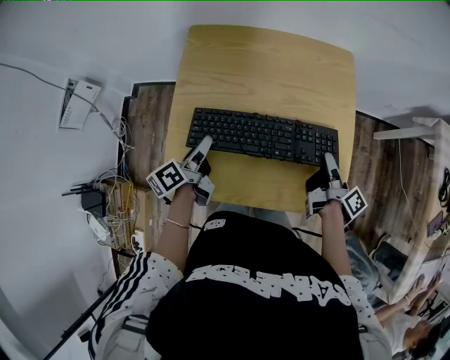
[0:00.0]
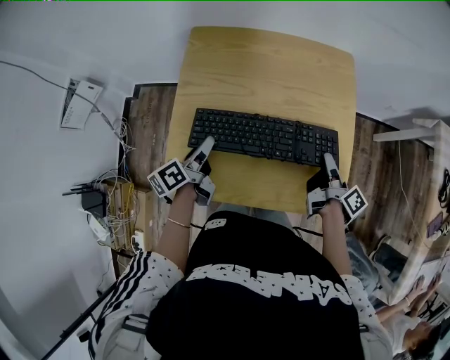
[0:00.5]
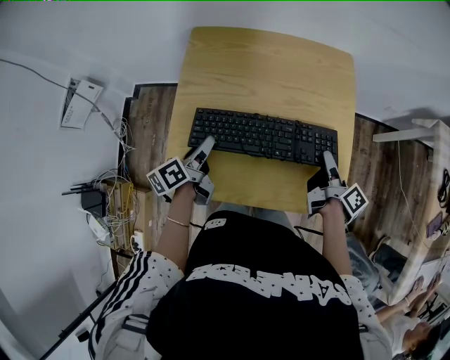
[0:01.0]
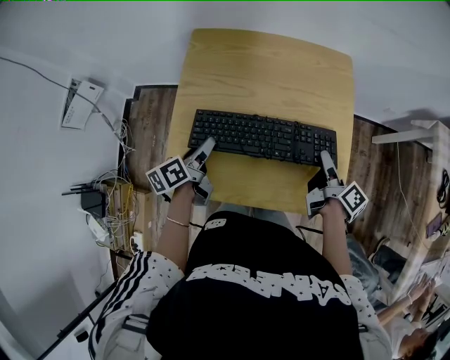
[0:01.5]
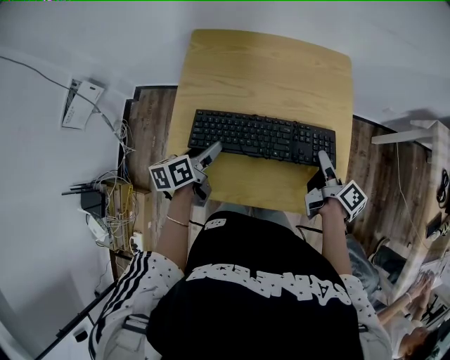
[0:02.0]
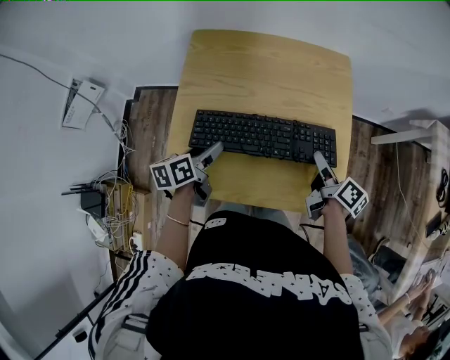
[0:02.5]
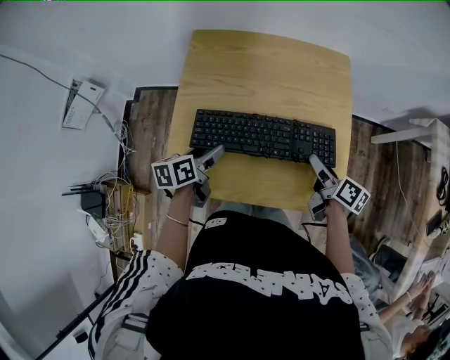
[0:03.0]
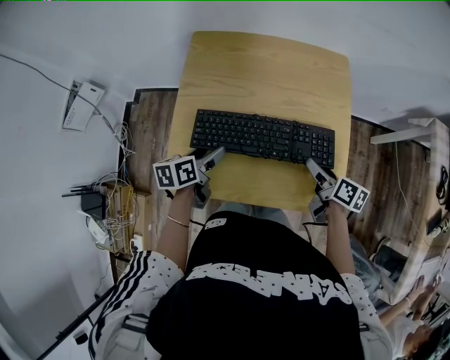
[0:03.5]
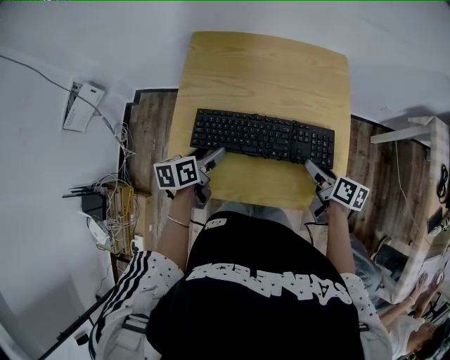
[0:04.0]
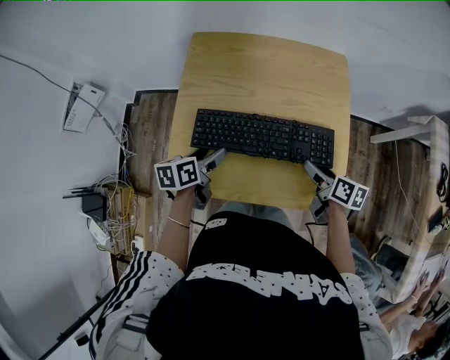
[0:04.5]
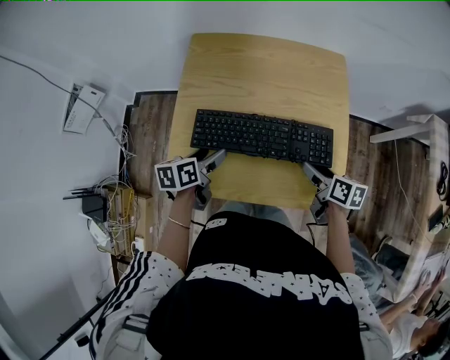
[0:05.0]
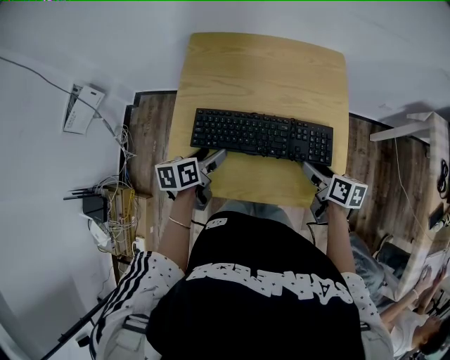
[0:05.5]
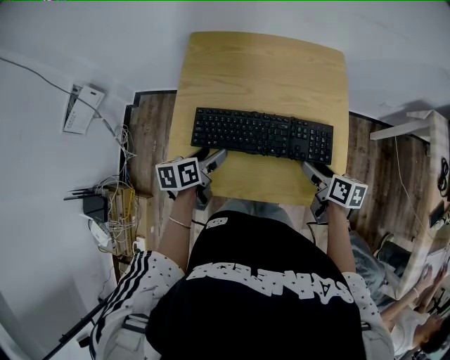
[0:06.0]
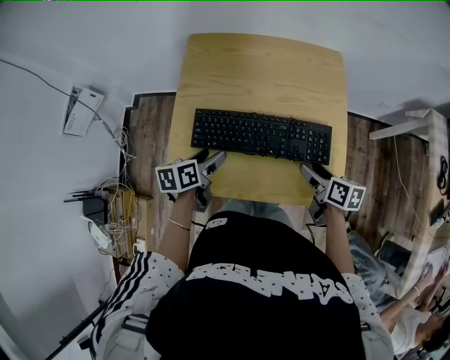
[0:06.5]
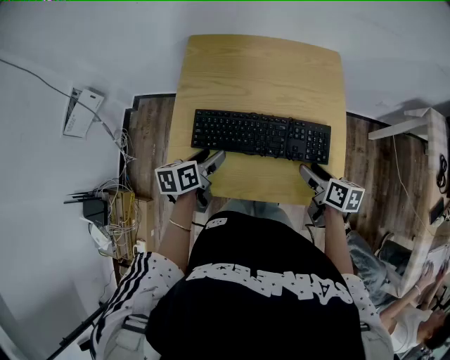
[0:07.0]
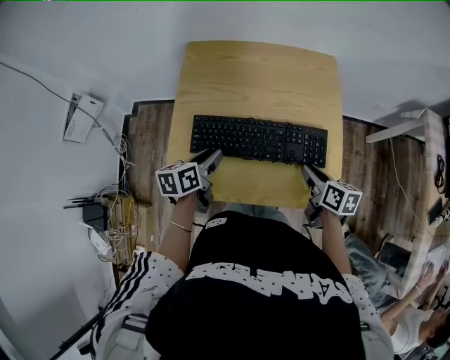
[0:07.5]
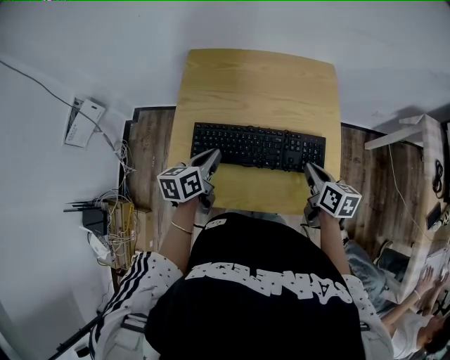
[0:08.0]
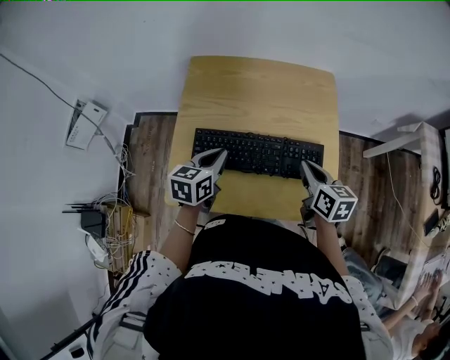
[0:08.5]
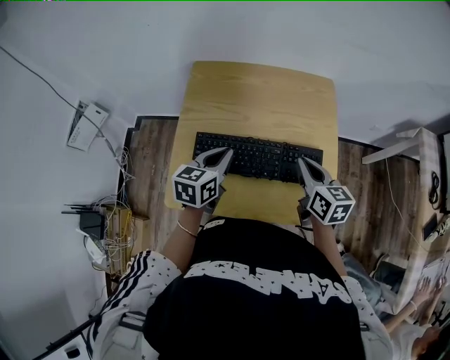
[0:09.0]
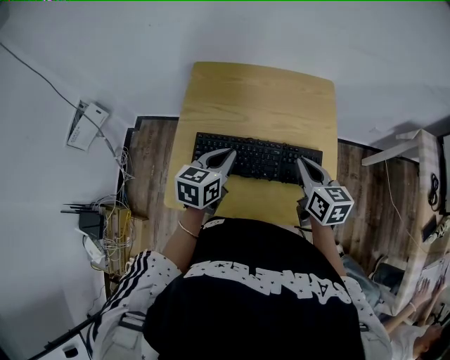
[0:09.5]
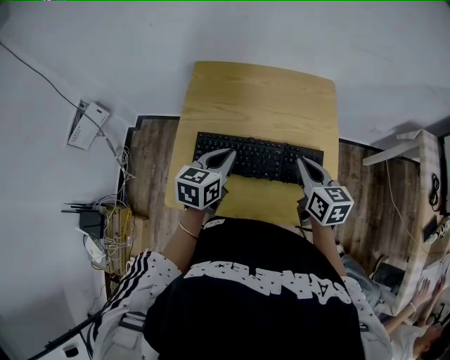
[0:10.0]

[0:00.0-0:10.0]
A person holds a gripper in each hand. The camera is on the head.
0:00.0 to 0:02.0: The left gripper turns by roughly 20 degrees, and opens up.
0:06.0 to 0:08.0: The left gripper ends up some 5 cm from where it was, and closes.
0:08.0 to 0:10.0: The left gripper shifts by approximately 5 cm.

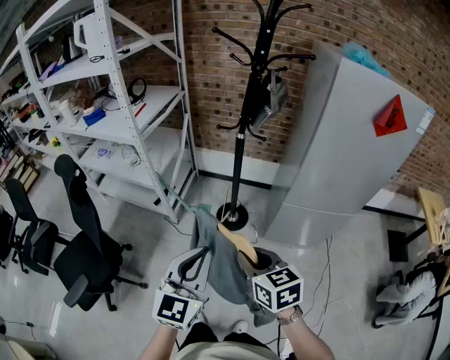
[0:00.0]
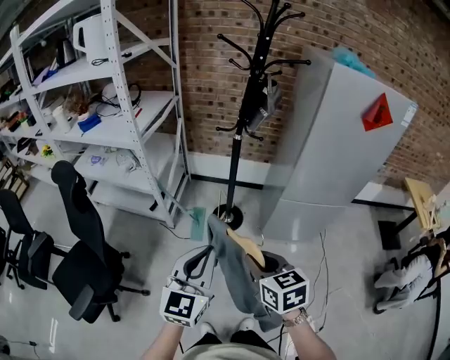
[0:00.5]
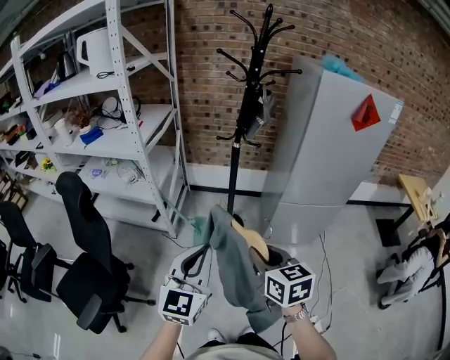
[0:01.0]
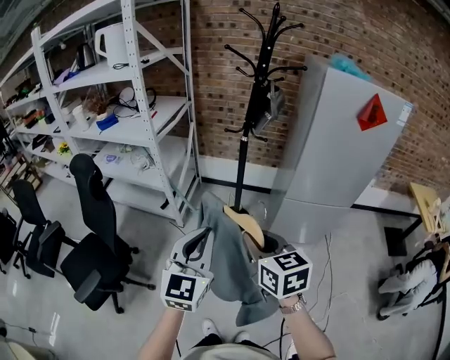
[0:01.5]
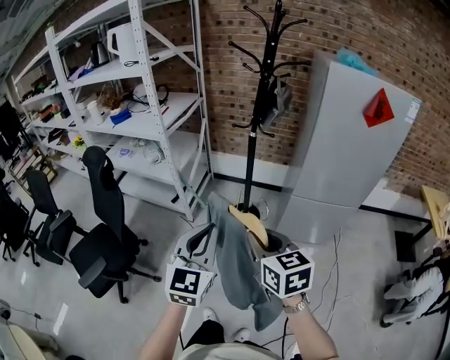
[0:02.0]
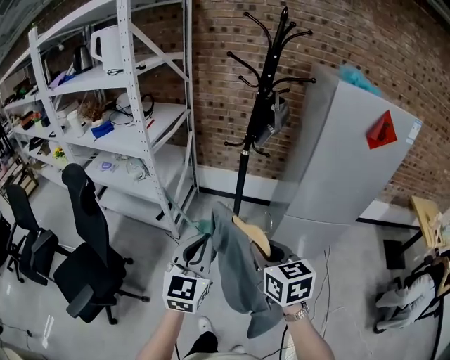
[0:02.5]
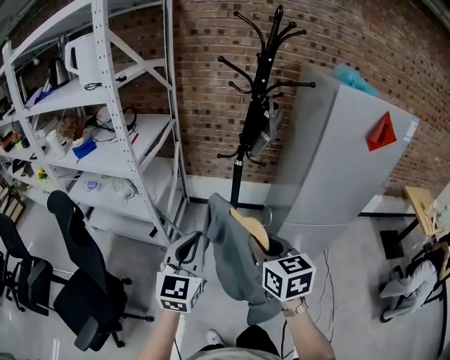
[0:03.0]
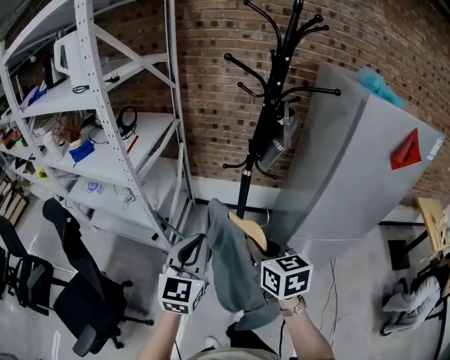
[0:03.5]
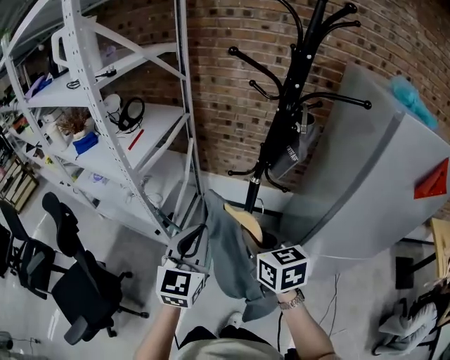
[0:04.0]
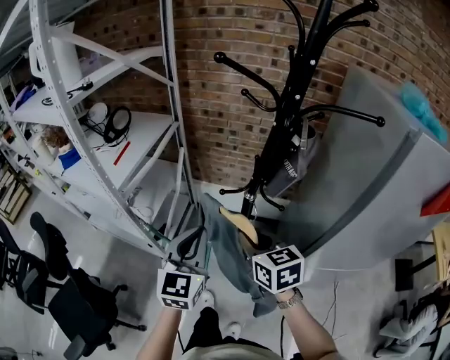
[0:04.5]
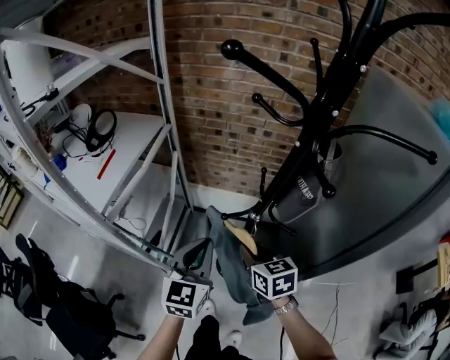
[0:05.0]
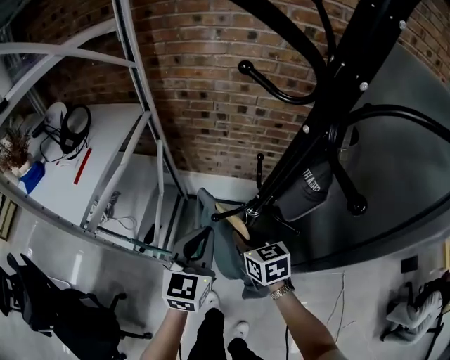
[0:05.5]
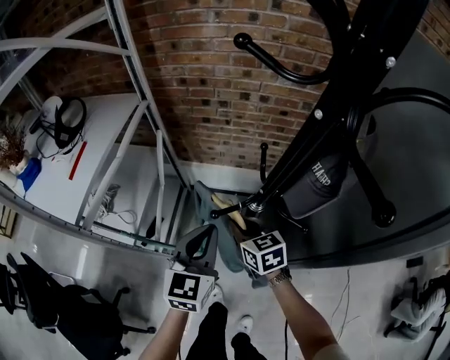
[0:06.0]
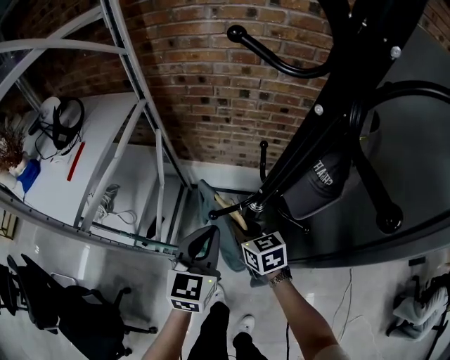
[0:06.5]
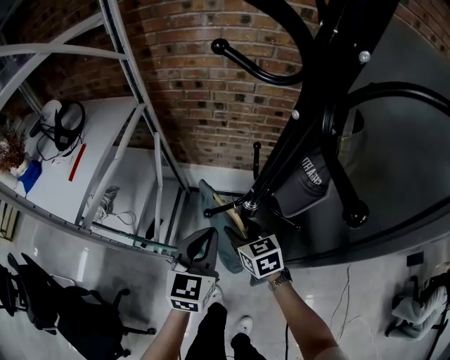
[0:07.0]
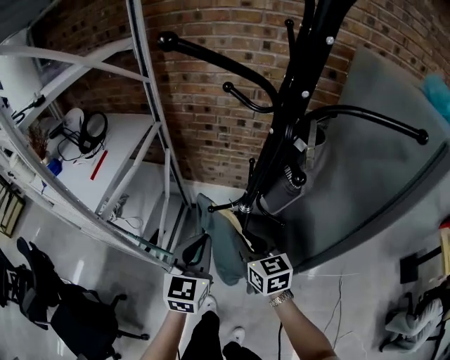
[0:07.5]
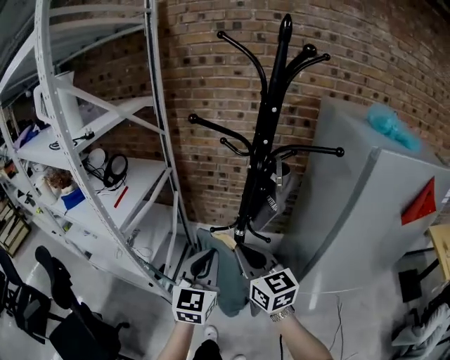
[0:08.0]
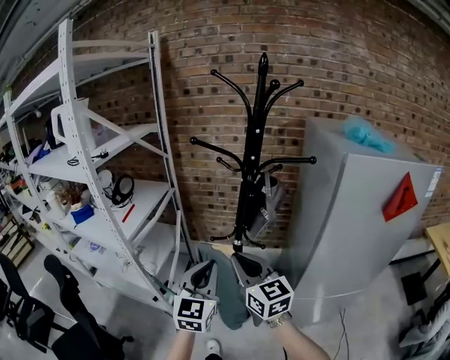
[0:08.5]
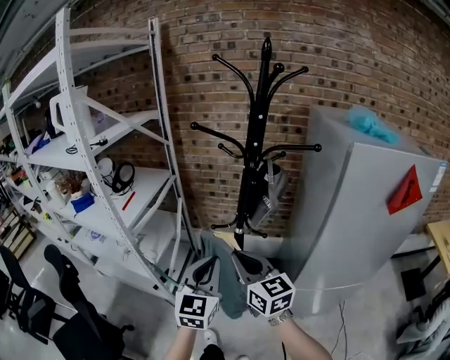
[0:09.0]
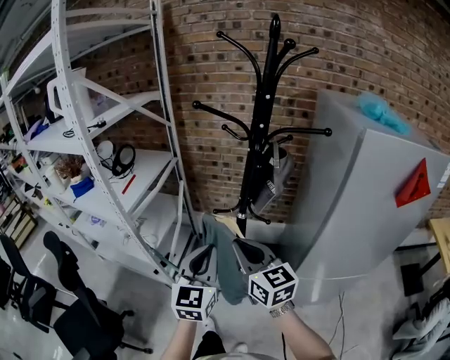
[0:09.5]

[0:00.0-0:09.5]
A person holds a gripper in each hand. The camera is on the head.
0:00.0 to 0:02.0: The right gripper goes some 10 cm backward and upward. The left gripper moves backward, roughly 10 cm, and goes to the left and returns, approximately 10 cm each way.
0:02.0 to 0:04.0: Both grippers move forward, some 40 cm.
0:04.0 to 0:05.5: Both grippers travel together forward and downward, some 30 cm.
0:05.5 to 0:07.5: The left gripper travels backward by about 5 cm; the right gripper travels upward and backward by roughly 10 cm, and opens, then closes once more.
0:07.5 to 0:09.5: The right gripper travels upward and backward by about 25 cm; the left gripper is displaced backward and upward by some 20 cm.

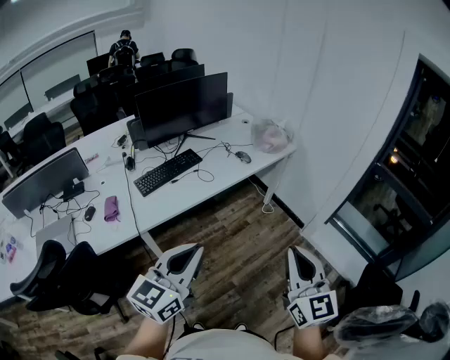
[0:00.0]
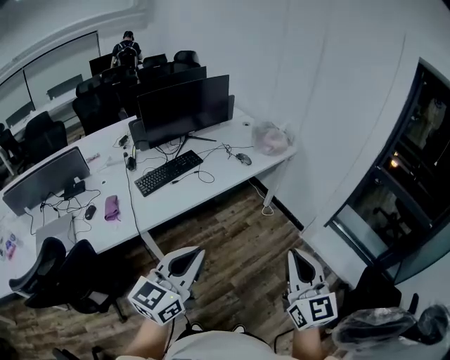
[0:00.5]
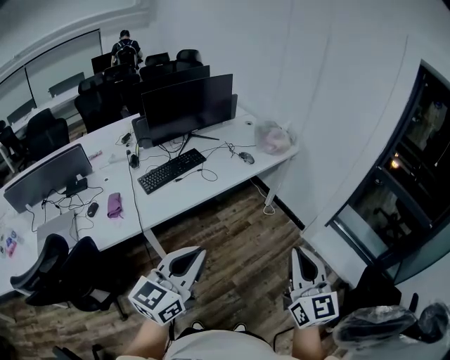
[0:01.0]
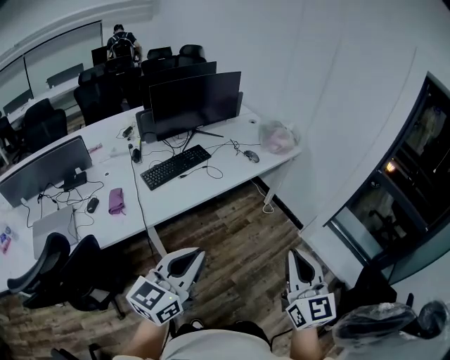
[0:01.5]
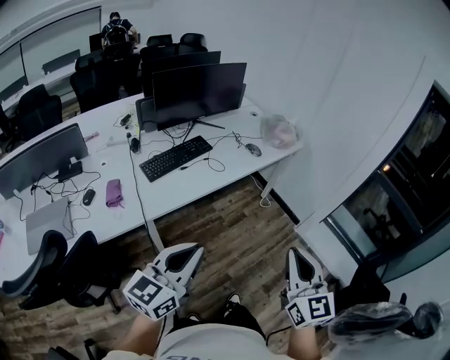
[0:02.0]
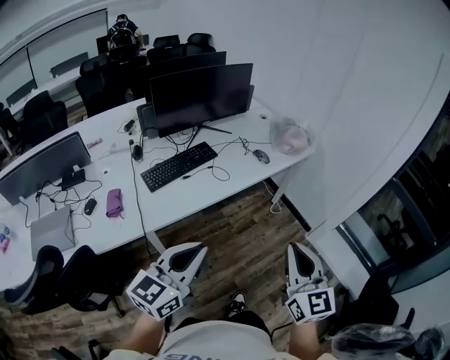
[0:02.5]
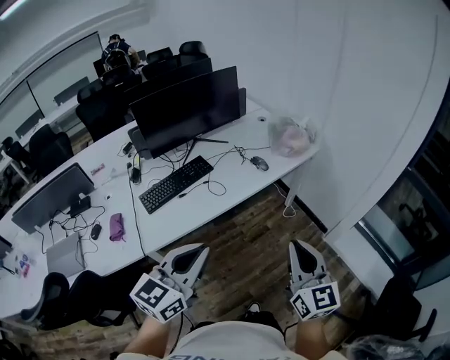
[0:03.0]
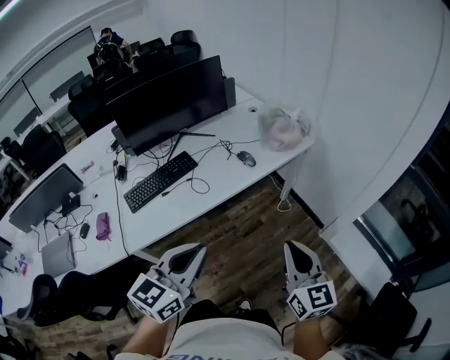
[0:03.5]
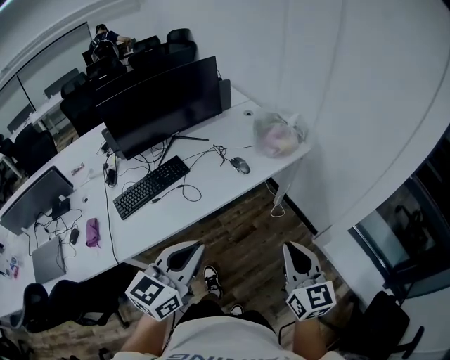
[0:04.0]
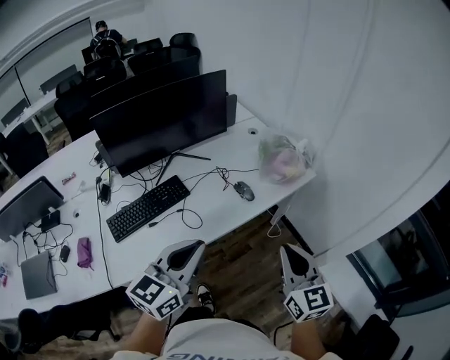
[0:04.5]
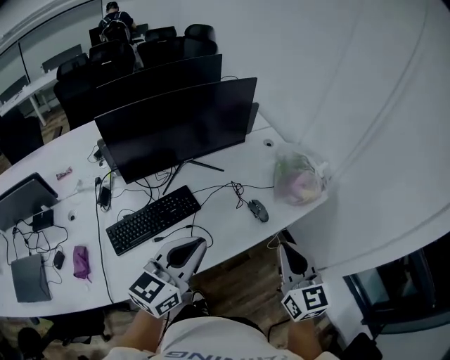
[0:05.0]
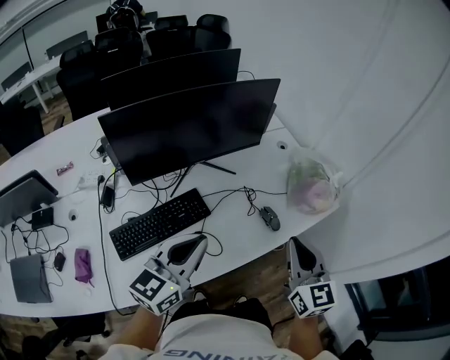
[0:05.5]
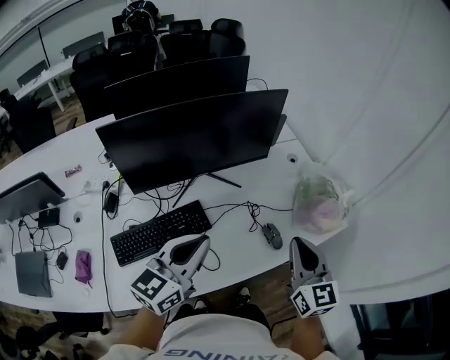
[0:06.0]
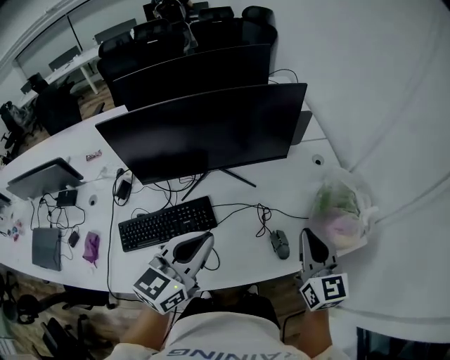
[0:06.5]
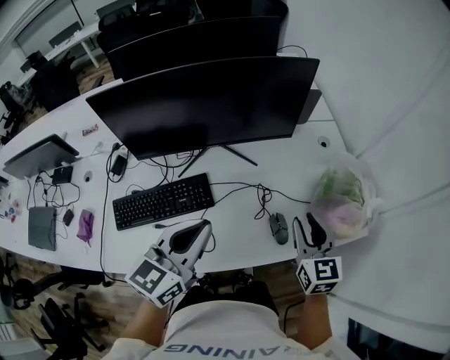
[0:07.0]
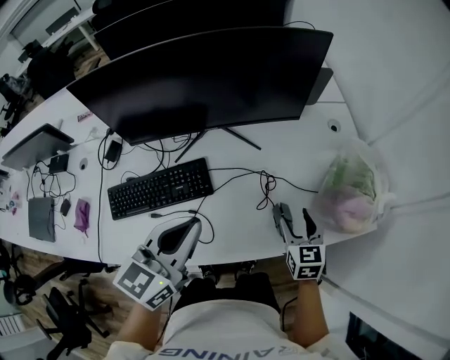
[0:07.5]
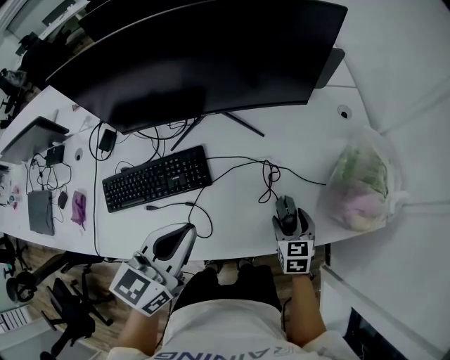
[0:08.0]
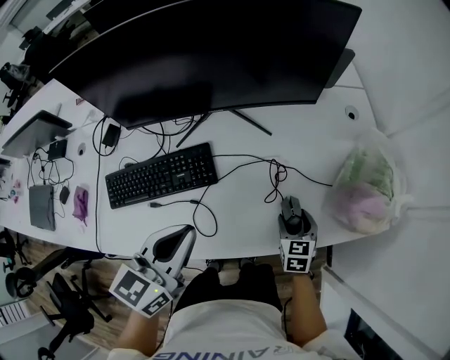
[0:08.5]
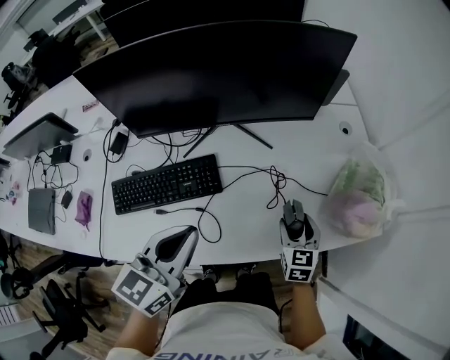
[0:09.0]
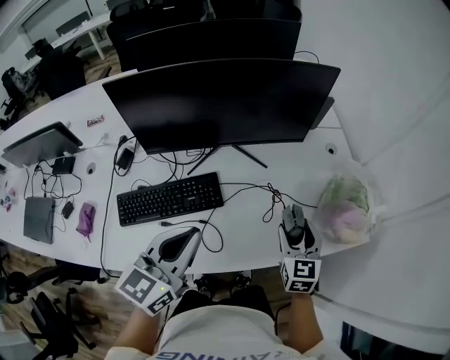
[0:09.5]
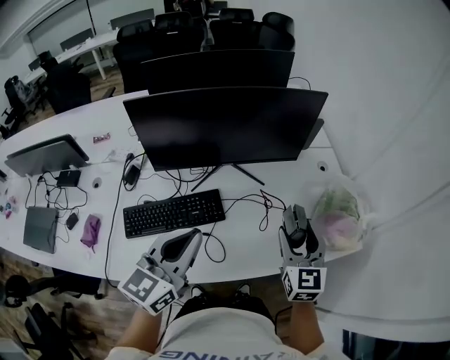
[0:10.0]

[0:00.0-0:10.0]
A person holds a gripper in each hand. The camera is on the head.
0:00.0 to 0:02.0: The grippers both shift to the left by roughly 10 cm.
0:02.0 to 0:04.0: Both grippers move forward and to the right, about 30 cm.
0:04.0 to 0:06.0: The two grippers go some 35 cm forward and to the left.
0:06.0 to 0:08.0: The left gripper heads downward, covering some 10 cm, and turns by about 30 degrees. The right gripper travels downward by about 30 cm, points its fingers about 40 degrees further downward, and opens.
0:08.0 to 0:10.0: The right gripper goes approximately 25 cm upward, and points its fingers approximately 30 degrees further upward; the left gripper is displaced upward and to the left by about 10 cm.
